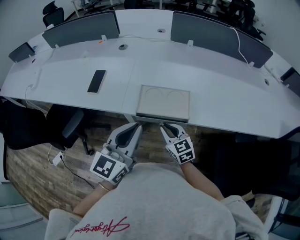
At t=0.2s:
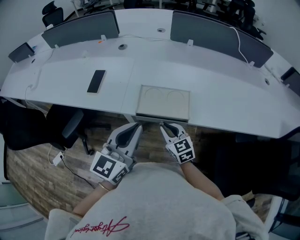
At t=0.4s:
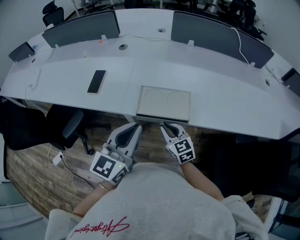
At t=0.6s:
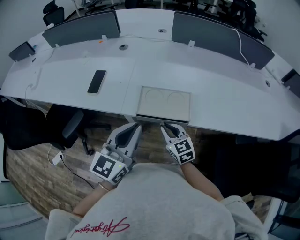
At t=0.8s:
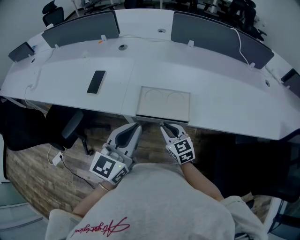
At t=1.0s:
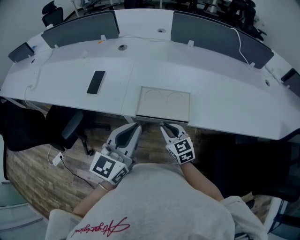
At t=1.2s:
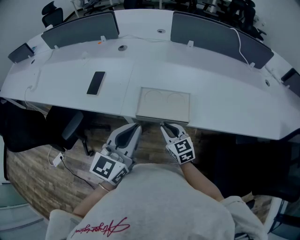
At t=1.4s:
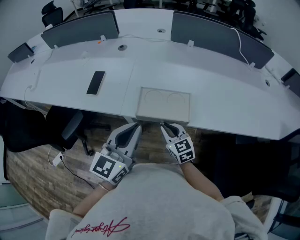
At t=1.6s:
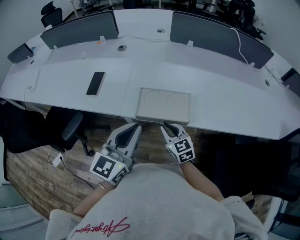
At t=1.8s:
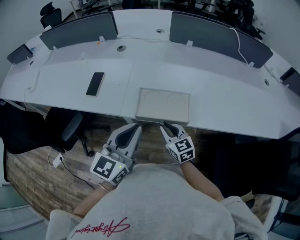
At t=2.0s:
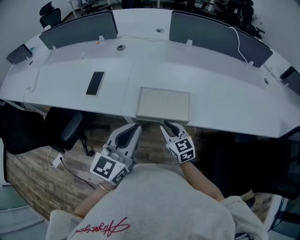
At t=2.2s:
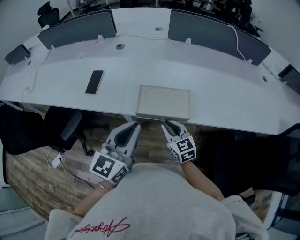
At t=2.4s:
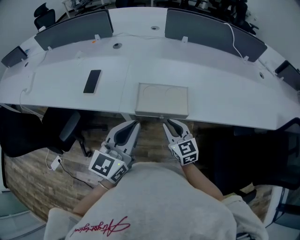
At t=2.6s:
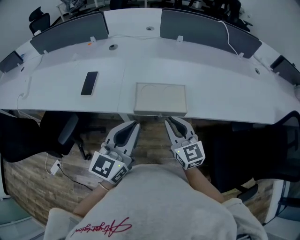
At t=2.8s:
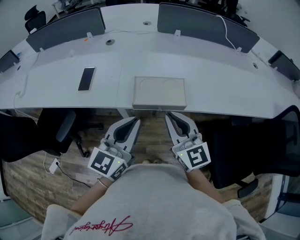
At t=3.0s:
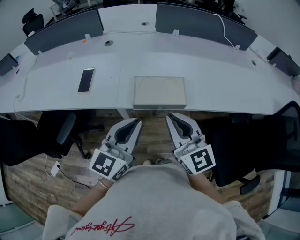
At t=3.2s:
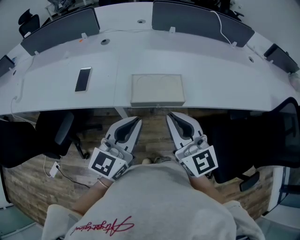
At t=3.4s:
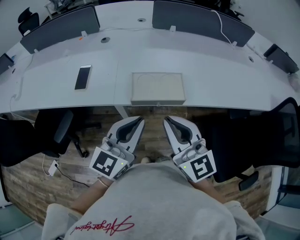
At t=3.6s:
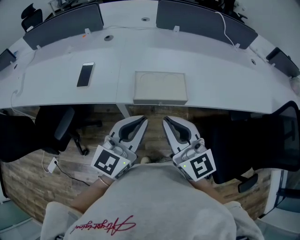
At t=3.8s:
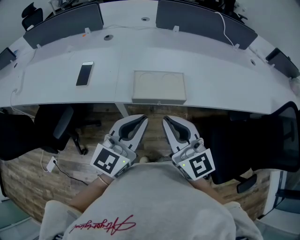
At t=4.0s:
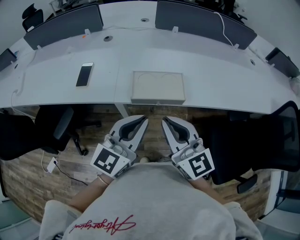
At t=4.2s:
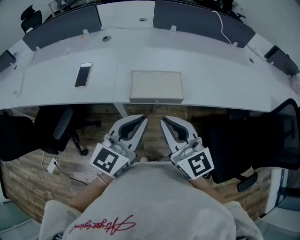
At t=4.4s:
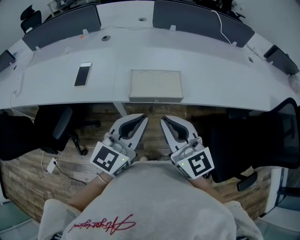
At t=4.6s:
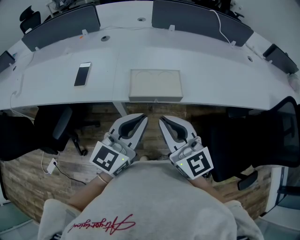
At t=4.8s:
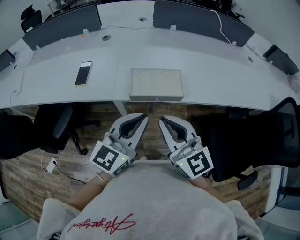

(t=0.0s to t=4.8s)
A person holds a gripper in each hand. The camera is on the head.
t=0.0s - t=1.6s: There are only small adjustments of the grippers.
t=1.6s - t=3.2s: The right gripper goes about 20 cm upward and backward, and swivels roughly 30 degrees.
t=3.2s - t=4.8s: The grippers make only small movements.

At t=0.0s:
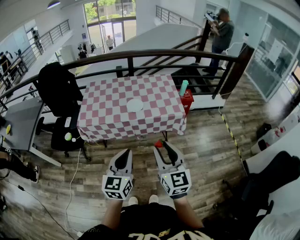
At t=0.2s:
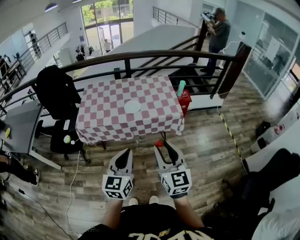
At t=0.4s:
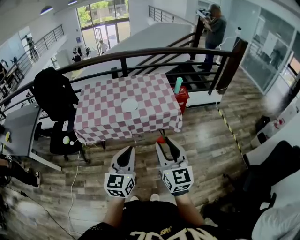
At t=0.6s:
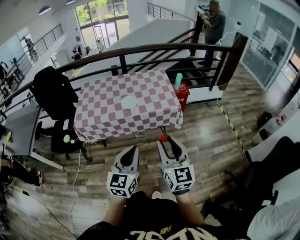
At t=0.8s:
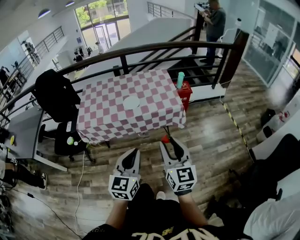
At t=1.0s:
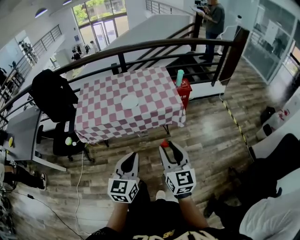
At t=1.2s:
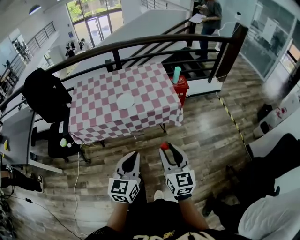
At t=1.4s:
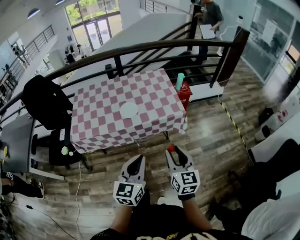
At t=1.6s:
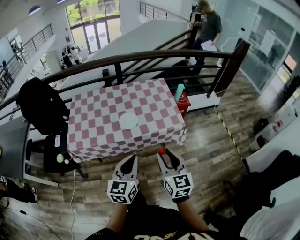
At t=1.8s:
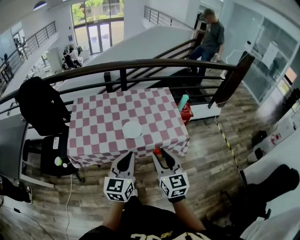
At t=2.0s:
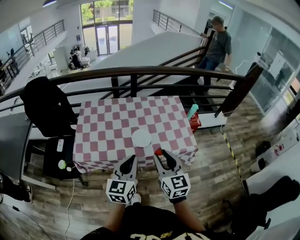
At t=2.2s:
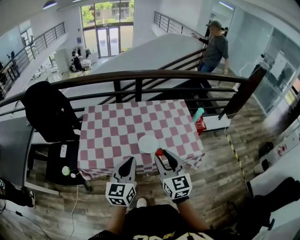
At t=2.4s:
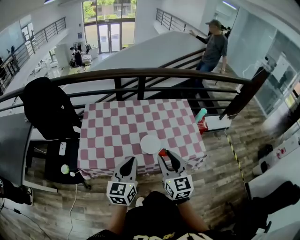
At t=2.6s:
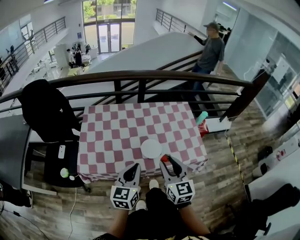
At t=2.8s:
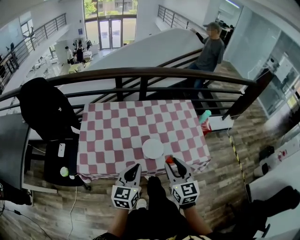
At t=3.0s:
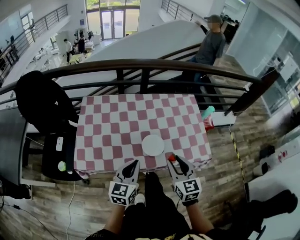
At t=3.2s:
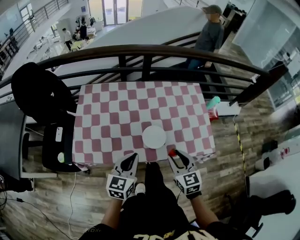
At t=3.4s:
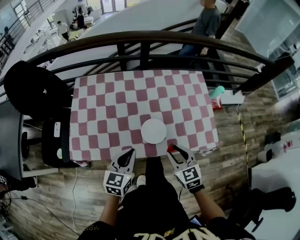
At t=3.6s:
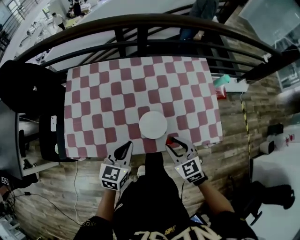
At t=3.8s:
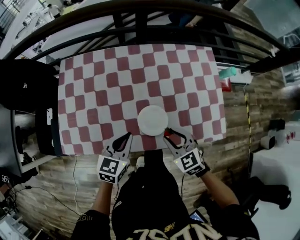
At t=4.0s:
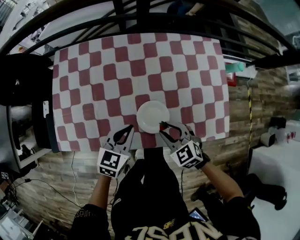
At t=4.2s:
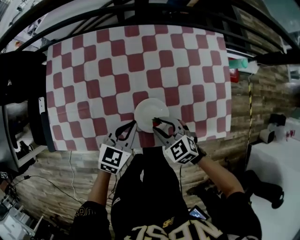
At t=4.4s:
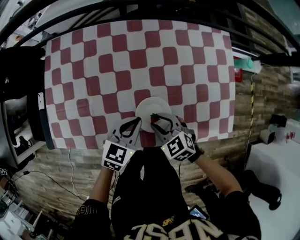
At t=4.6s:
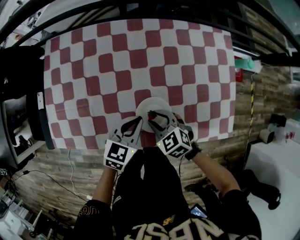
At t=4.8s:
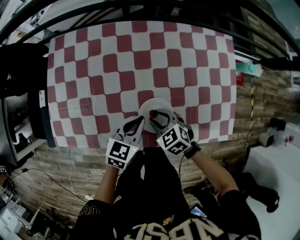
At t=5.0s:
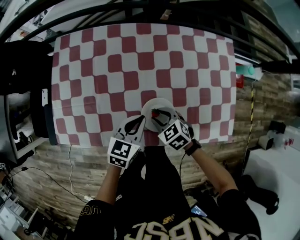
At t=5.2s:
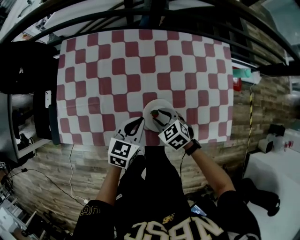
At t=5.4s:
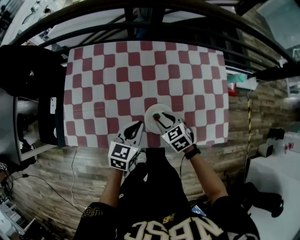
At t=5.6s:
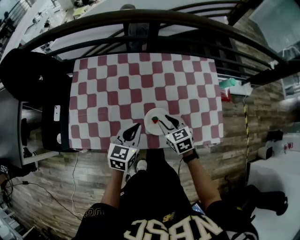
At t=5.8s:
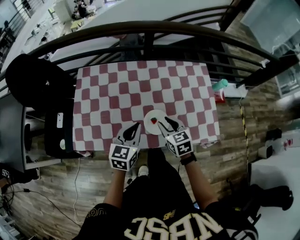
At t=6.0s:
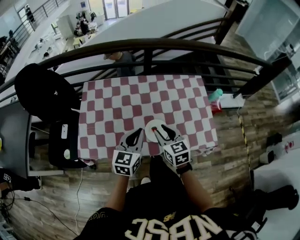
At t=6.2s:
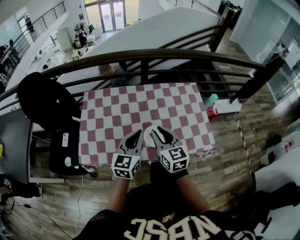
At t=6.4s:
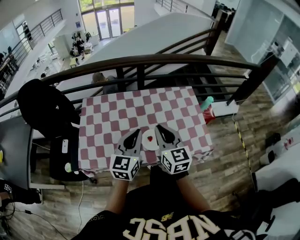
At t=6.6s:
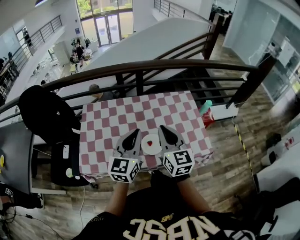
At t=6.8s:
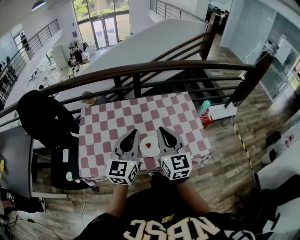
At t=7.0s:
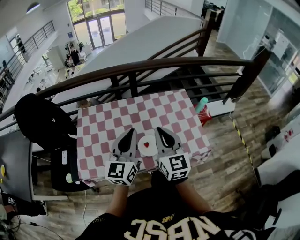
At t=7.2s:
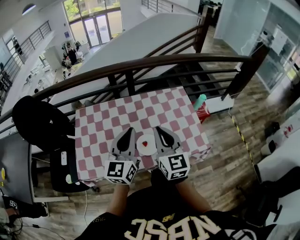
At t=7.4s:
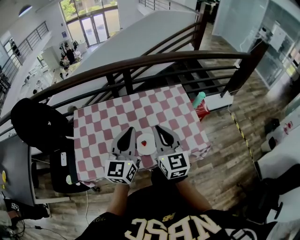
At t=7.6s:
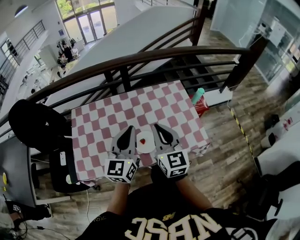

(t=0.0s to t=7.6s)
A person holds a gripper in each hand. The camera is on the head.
t=0.0s - t=1.6s: The left gripper heads forward, covering roughly 15 cm. The right gripper shifts roughly 15 cm forward and downward.
t=1.6s - t=3.0s: The left gripper shifts approximately 25 cm forward, to the left and downward. The right gripper heads forward and to the left, covering some 25 cm.
t=3.0s - t=4.6s: Both grippers move downward and forward, approximately 25 cm. The left gripper swivels about 20 degrees. Meanwhile the right gripper tilts its fingers roughly 30 degrees downward.
t=4.6s - t=6.0s: Both grippers travel together upward, about 20 cm. The right gripper rotates some 40 degrees; the left gripper turns by about 20 degrees.
t=6.0s - t=7.6s: The two grippers go approximately 15 cm upward. The right gripper rotates approximately 30 degrees, and closes up.

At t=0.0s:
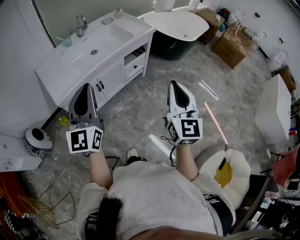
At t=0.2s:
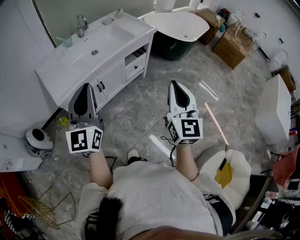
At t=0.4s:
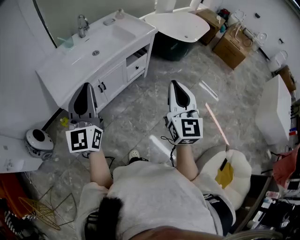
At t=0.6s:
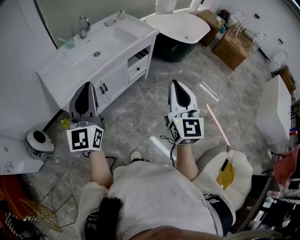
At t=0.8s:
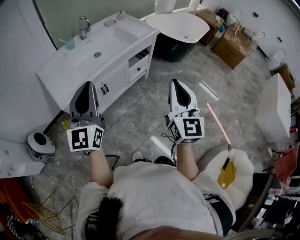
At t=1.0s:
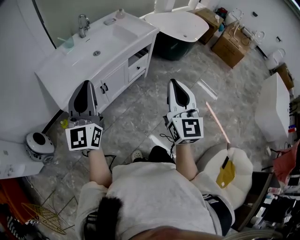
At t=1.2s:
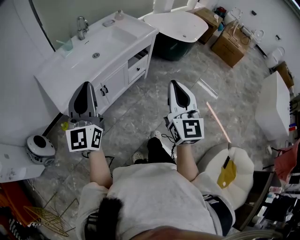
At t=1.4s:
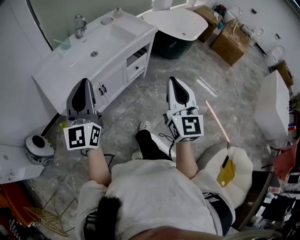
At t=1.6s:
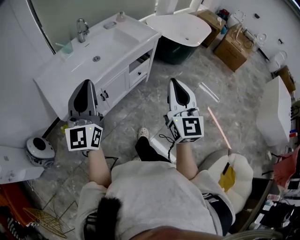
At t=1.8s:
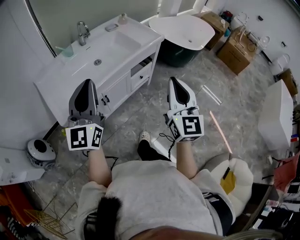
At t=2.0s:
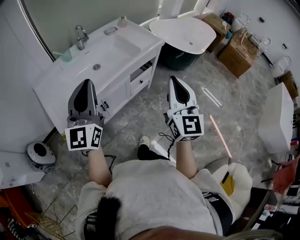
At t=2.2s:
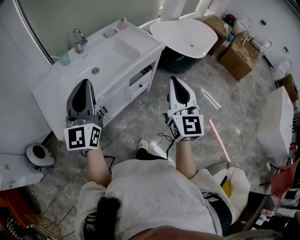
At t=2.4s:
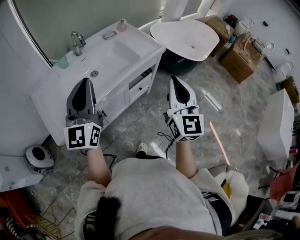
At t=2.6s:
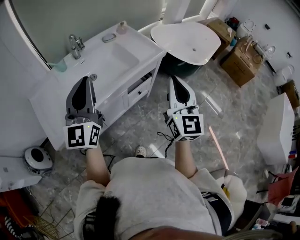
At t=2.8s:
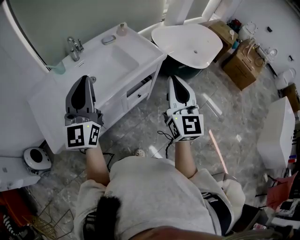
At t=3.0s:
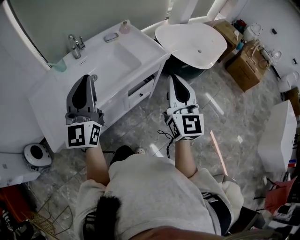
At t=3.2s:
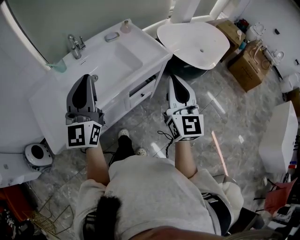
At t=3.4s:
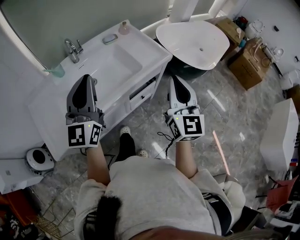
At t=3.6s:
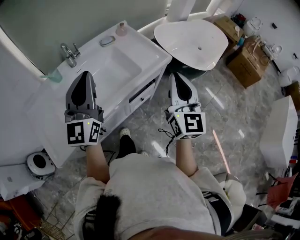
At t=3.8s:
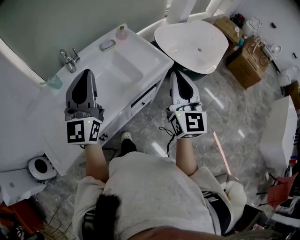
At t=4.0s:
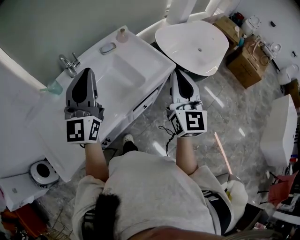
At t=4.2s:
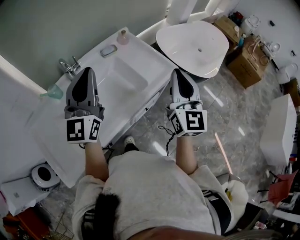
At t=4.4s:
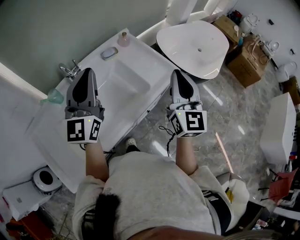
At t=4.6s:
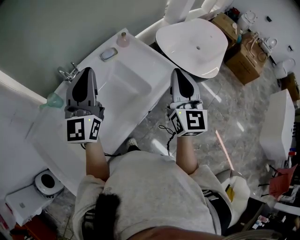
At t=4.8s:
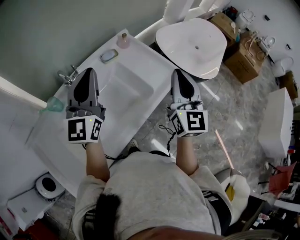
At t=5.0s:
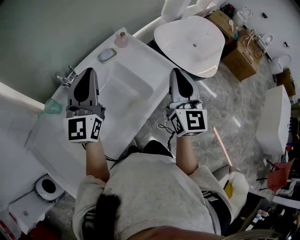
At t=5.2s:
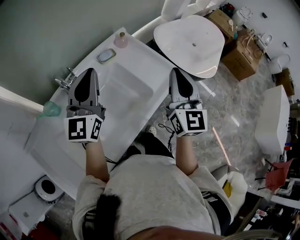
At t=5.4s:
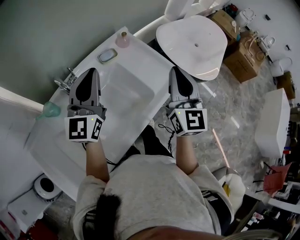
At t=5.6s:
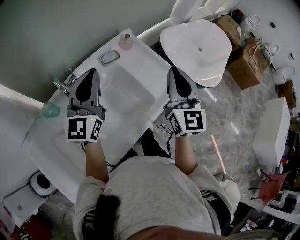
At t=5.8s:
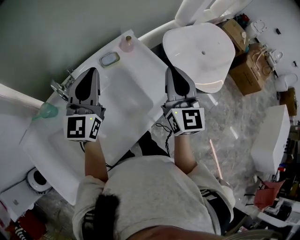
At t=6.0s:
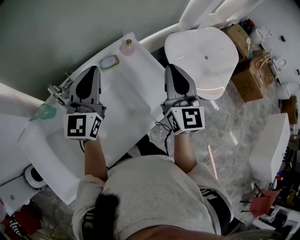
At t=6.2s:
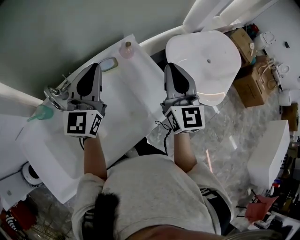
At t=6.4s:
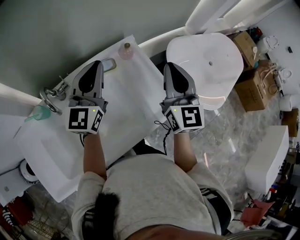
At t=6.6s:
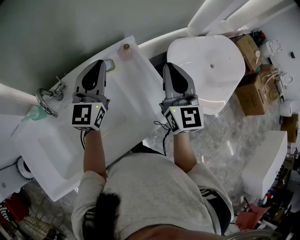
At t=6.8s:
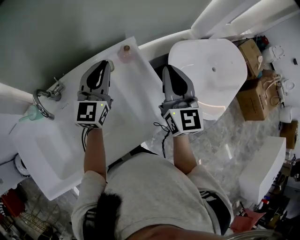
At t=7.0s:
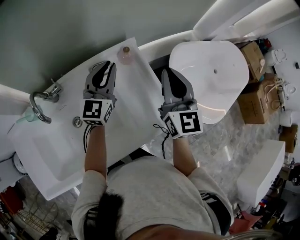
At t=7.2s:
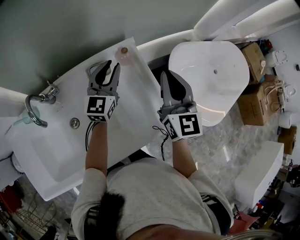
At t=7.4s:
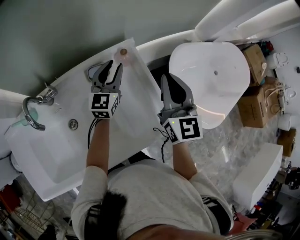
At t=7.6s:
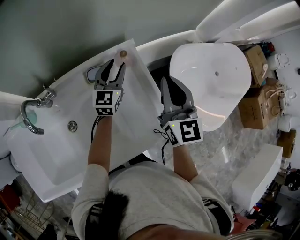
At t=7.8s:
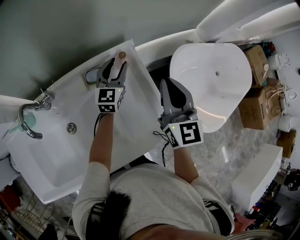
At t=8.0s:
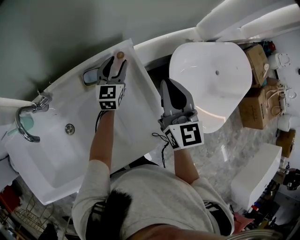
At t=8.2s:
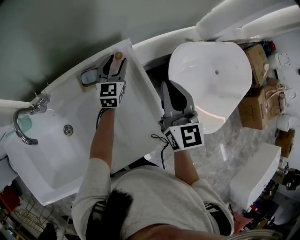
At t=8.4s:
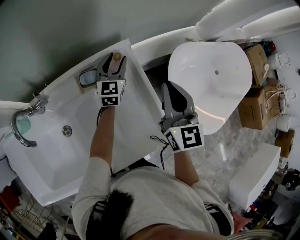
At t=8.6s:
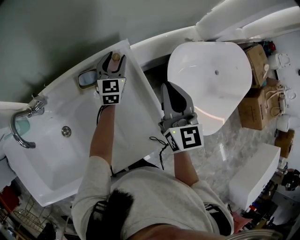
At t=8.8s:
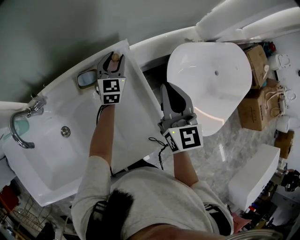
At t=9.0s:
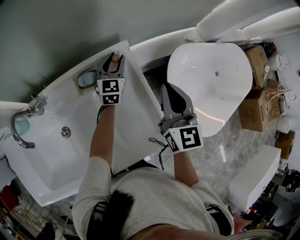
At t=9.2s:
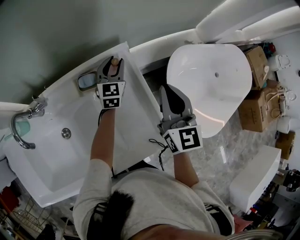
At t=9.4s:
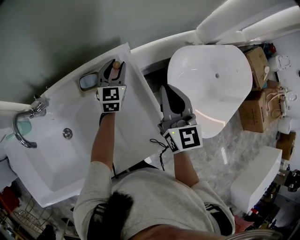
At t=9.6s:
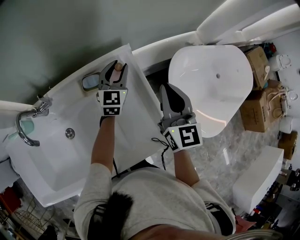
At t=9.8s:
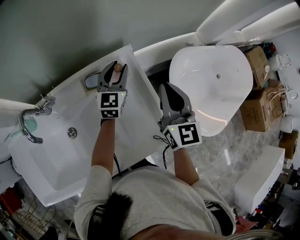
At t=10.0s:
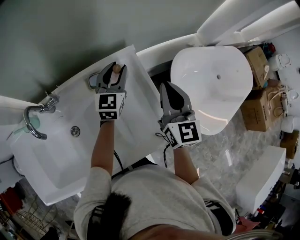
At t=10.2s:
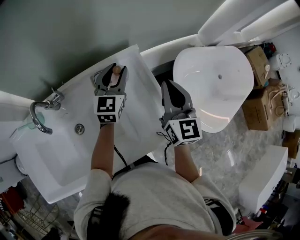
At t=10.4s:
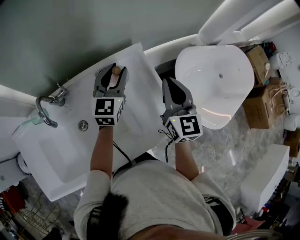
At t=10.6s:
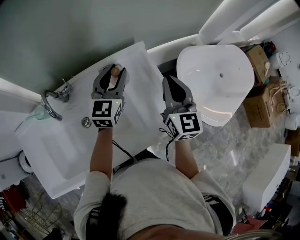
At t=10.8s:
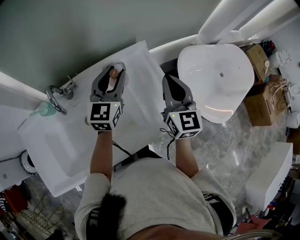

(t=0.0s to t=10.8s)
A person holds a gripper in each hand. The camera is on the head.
t=0.0s - t=1.6s: The grippers both shift forward and to the left by approximately 10 cm.
t=1.6s - t=3.0s: Both grippers travel together forward, approximately 25 cm.
t=3.0s - t=4.6s: Both grippers travel together forward, about 25 cm.
t=4.6s - t=6.2s: The grippers both shift forward by roughly 20 cm.
t=6.2s - t=7.8s: The left gripper goes approximately 35 cm downward, forward and to the right, and opens its fingers. Meanwhile the right gripper travels forward and downward by some 15 cm.
t=7.8s - t=9.2s: The left gripper moves approximately 5 cm.
t=9.2s - t=10.8s: The left gripper moves backward, upward and to the left, some 30 cm. The right gripper travels backward, to the left and upward by some 15 cm.
